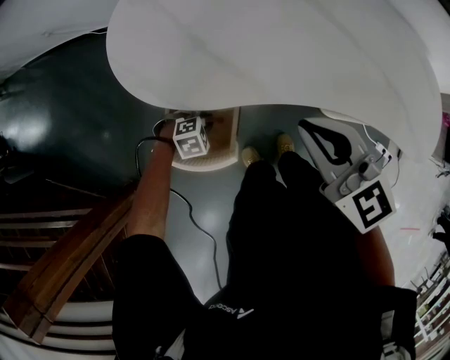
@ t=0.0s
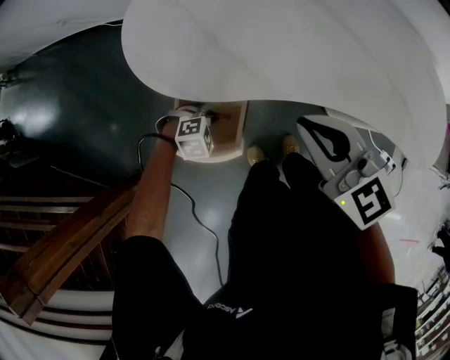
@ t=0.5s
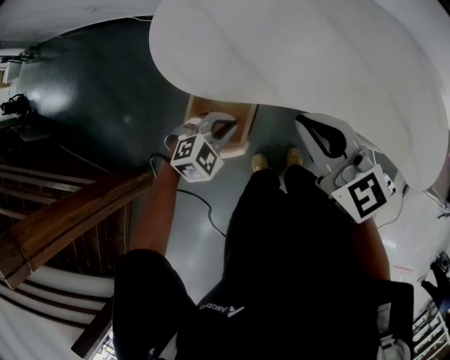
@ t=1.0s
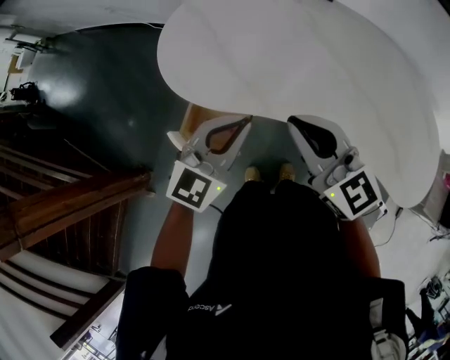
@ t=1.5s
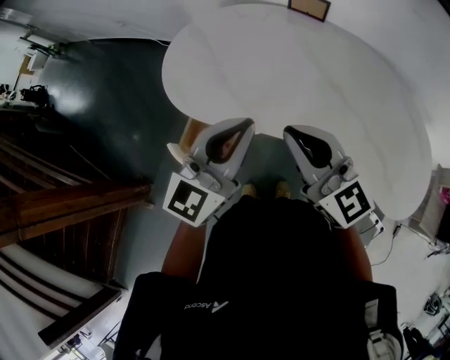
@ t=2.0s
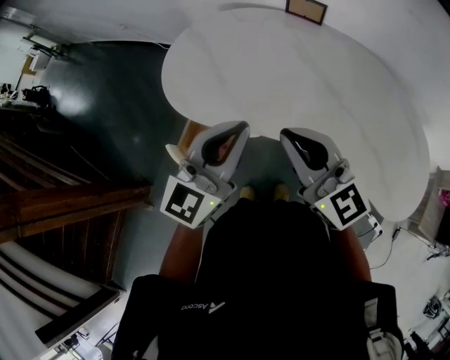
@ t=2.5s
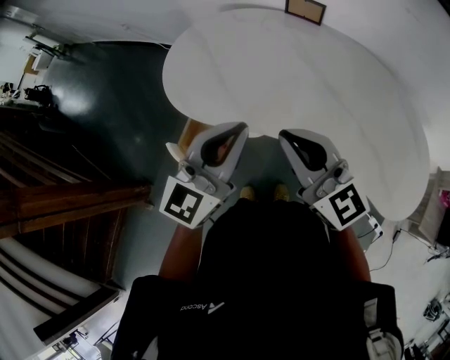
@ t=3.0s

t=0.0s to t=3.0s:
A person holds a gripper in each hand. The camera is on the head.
t=0.0s to t=1.5s: The left gripper heads upward, covering about 40 cm, and tips its fingers upward by approximately 60 degrees, while the right gripper heads upward, covering roughly 10 cm.
t=1.5s to t=3.0s: The right gripper ends up some 5 cm from where it was. The left gripper is displaced upward by about 10 cm, and rotates some 20 degrees.

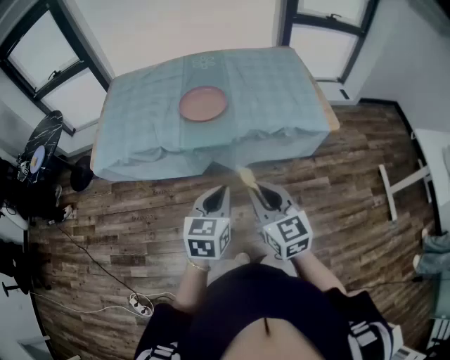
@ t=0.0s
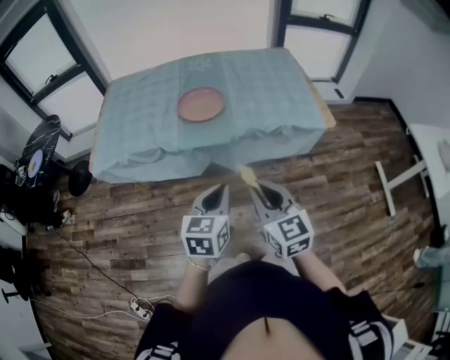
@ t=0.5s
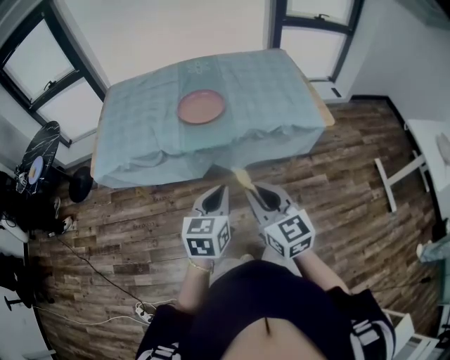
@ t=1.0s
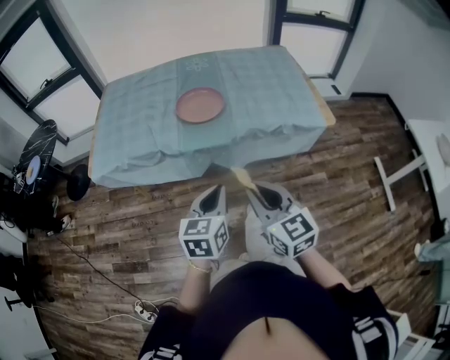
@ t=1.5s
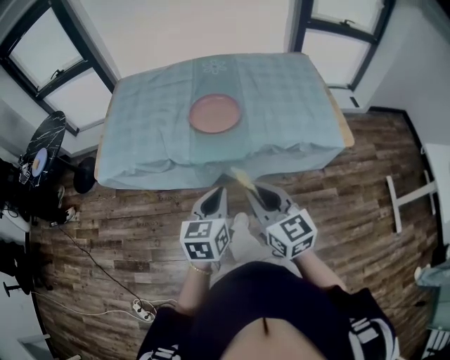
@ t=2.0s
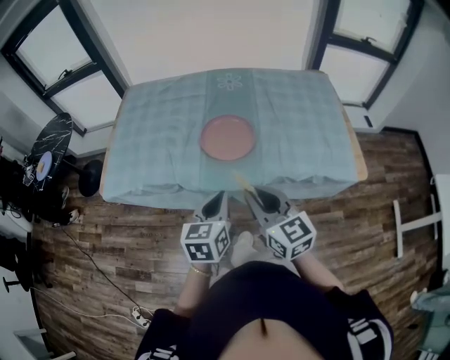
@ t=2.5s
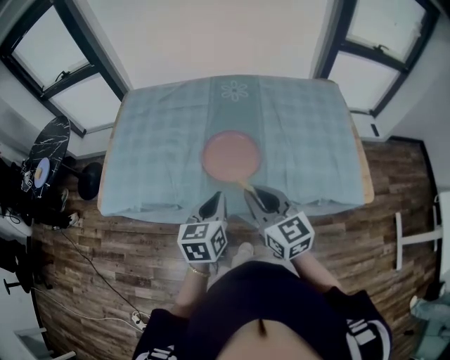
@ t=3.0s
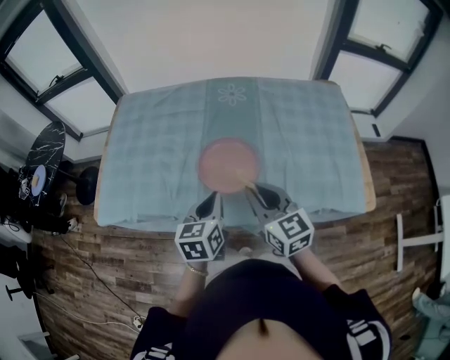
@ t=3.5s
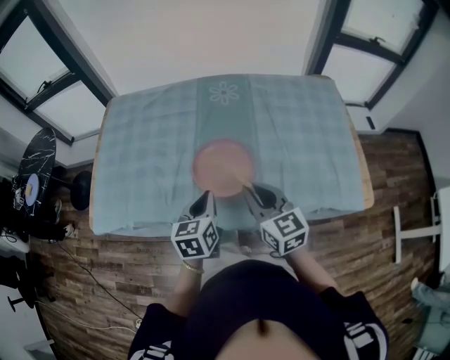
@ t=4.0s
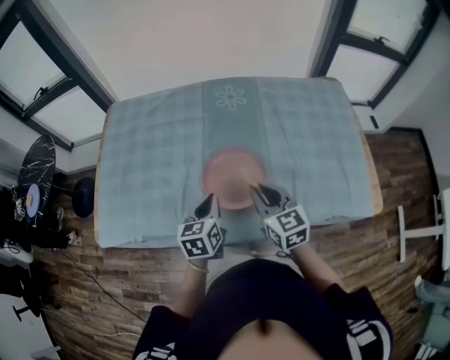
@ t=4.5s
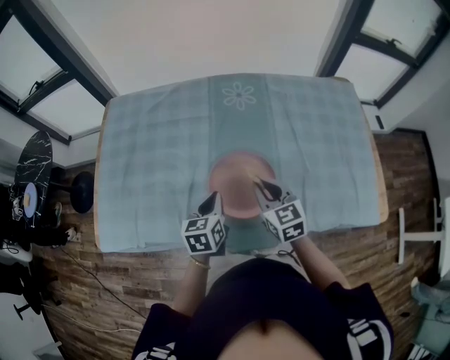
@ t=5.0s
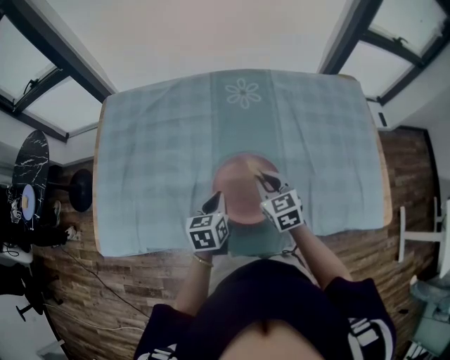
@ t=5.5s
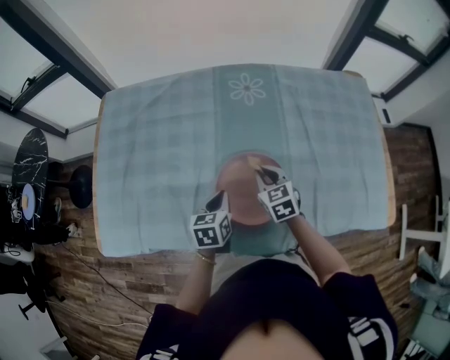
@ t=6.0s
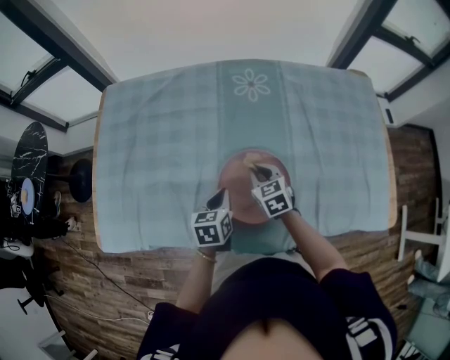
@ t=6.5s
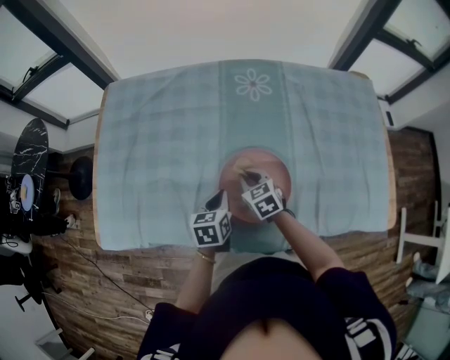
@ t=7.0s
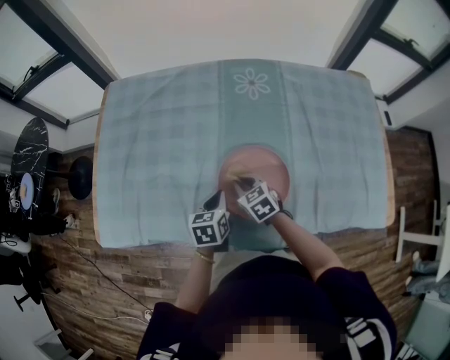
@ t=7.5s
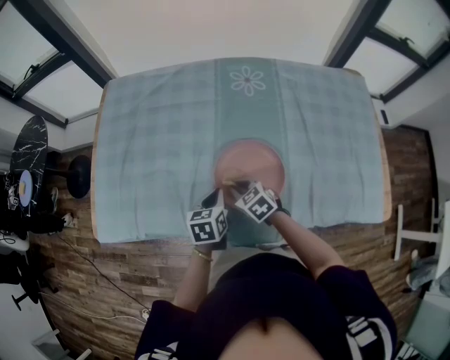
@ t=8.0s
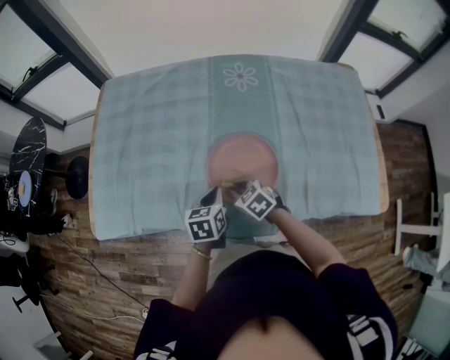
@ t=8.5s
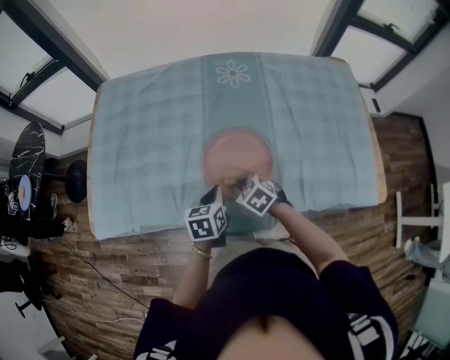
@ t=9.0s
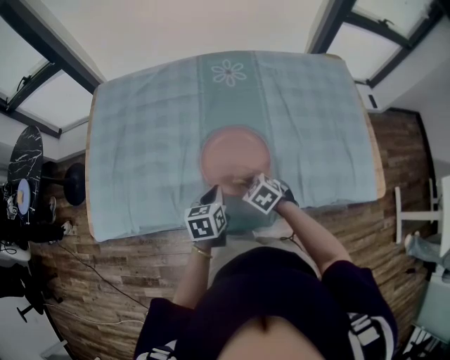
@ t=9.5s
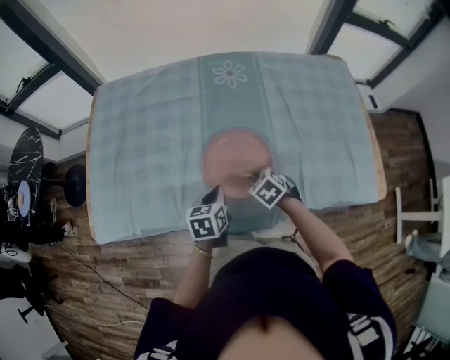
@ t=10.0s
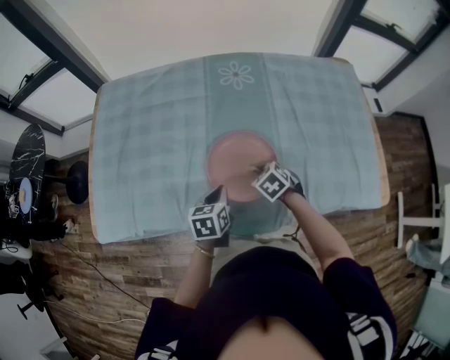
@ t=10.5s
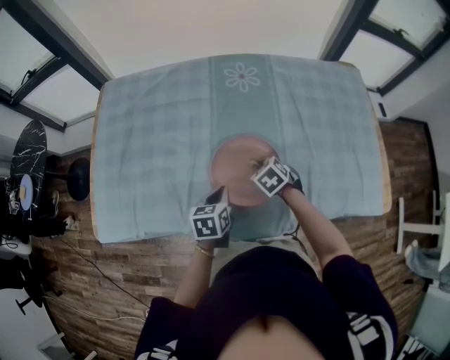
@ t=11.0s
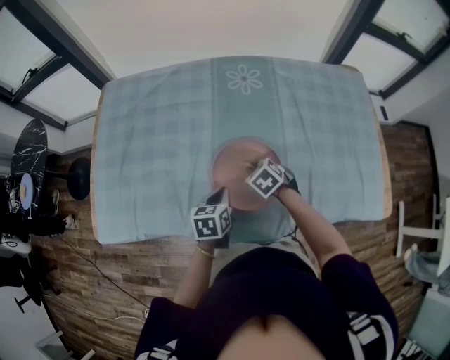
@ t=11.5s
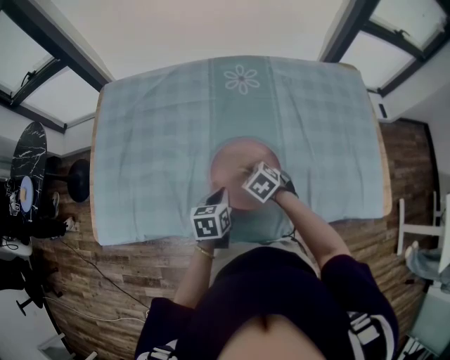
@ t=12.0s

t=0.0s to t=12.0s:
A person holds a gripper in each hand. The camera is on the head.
t=0.0s to t=2.0s: The grippers both shift forward by approximately 10 cm.
t=2.0s to t=4.0s: The grippers both shift forward by roughly 30 cm.
t=4.0s to t=6.0s: The two grippers go about 25 cm forward and downward. The right gripper swivels roughly 20 degrees.
t=6.0s to t=8.0s: The right gripper goes some 10 cm to the left and backward, and swivels approximately 20 degrees.
t=8.0s to t=10.0s: The right gripper moves to the right, roughly 10 cm.
t=10.0s to t=12.0s: The right gripper is displaced forward by roughly 5 cm.

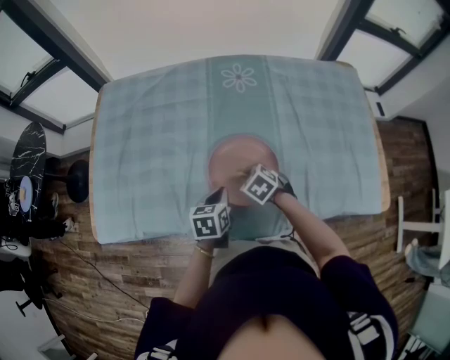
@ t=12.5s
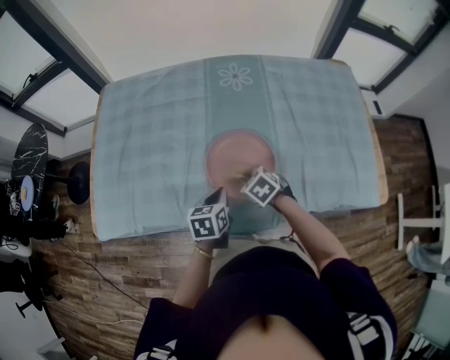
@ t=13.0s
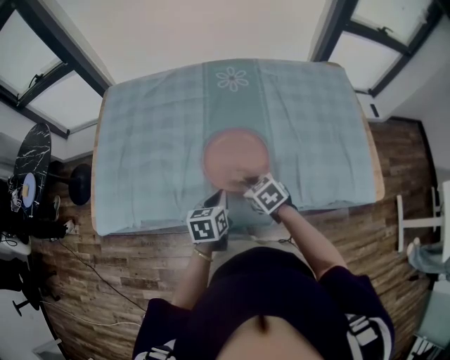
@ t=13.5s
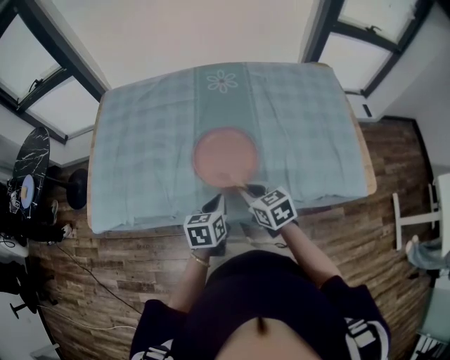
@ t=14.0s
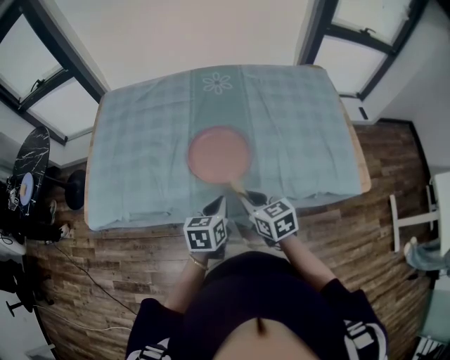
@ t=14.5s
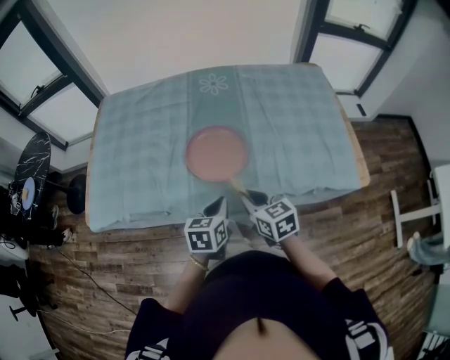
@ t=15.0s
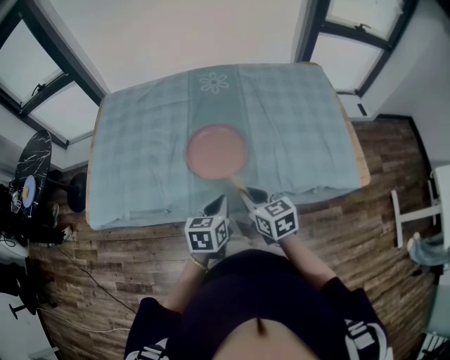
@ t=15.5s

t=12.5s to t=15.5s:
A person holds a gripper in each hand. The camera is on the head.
t=12.5s to t=14.0s: Both grippers travel together backward and upward, about 15 cm. The right gripper turns by some 40 degrees.
t=14.0s to t=15.5s: Both grippers move backward, approximately 5 cm.

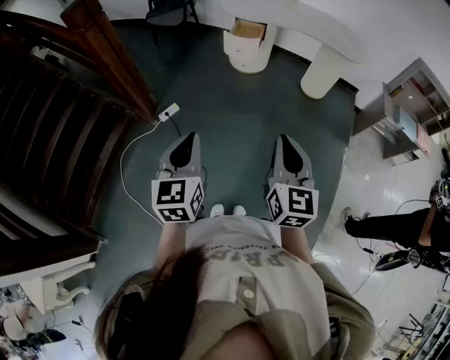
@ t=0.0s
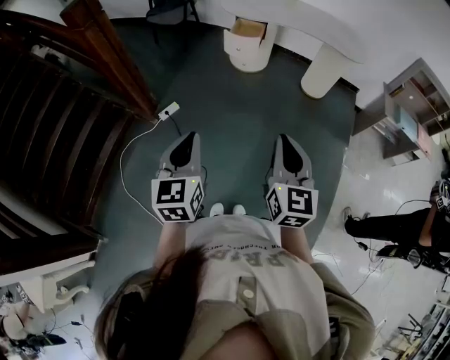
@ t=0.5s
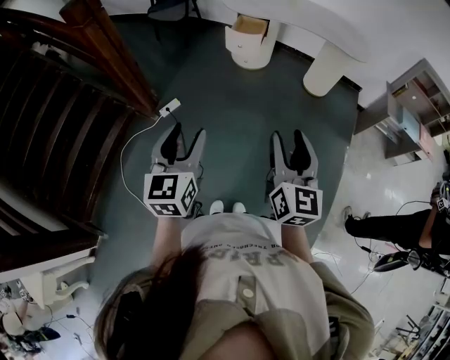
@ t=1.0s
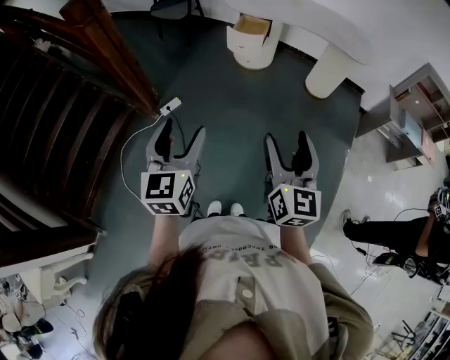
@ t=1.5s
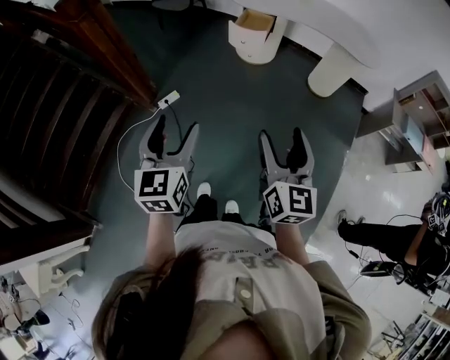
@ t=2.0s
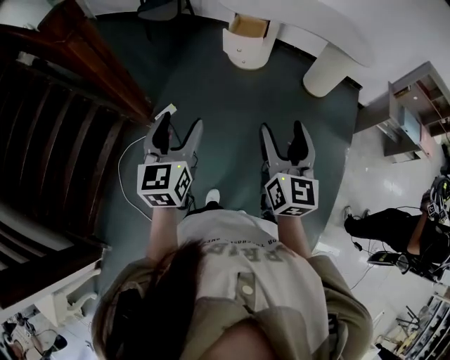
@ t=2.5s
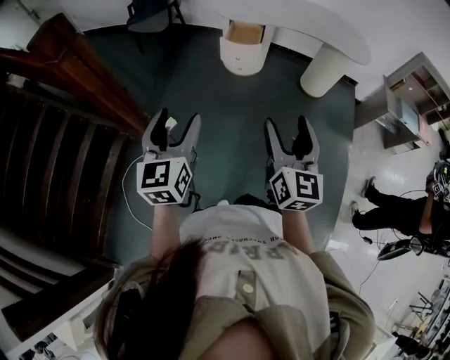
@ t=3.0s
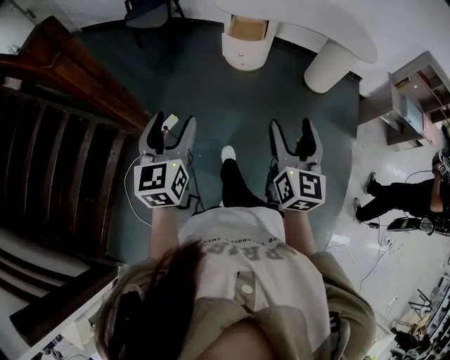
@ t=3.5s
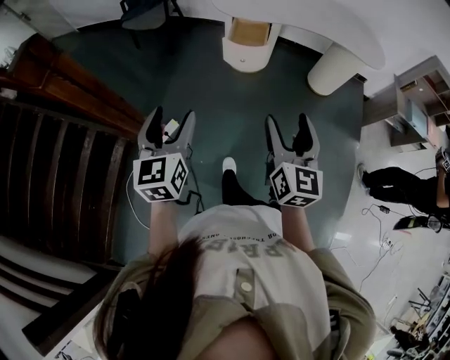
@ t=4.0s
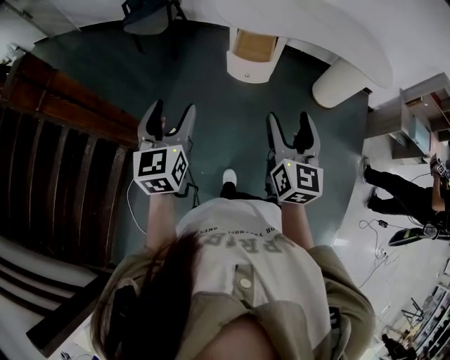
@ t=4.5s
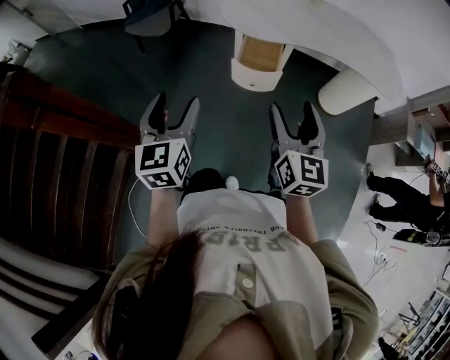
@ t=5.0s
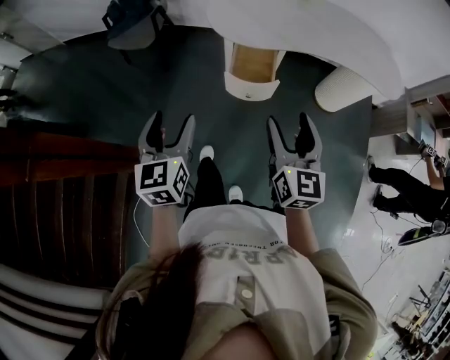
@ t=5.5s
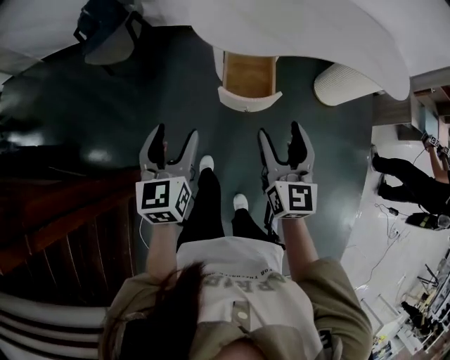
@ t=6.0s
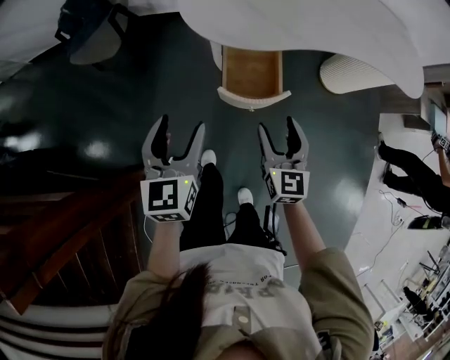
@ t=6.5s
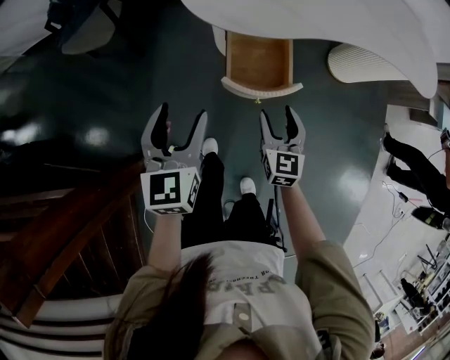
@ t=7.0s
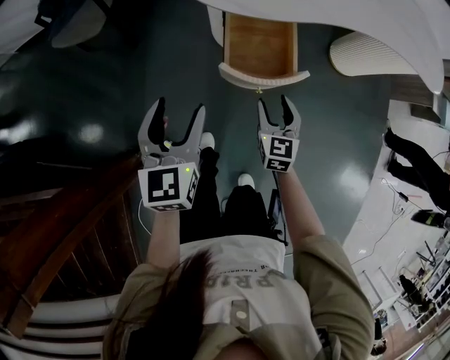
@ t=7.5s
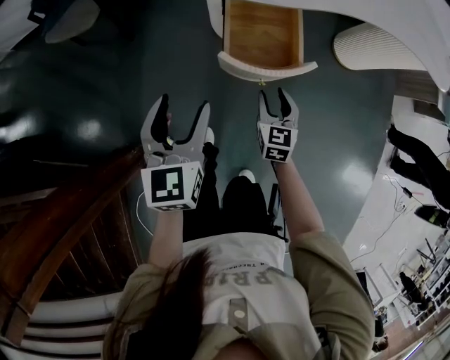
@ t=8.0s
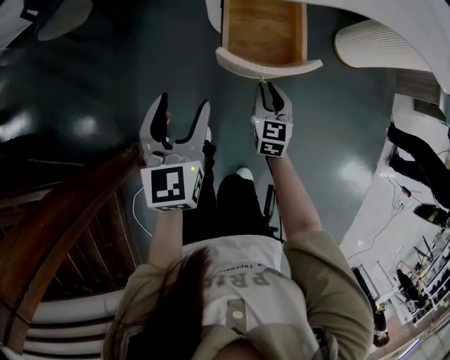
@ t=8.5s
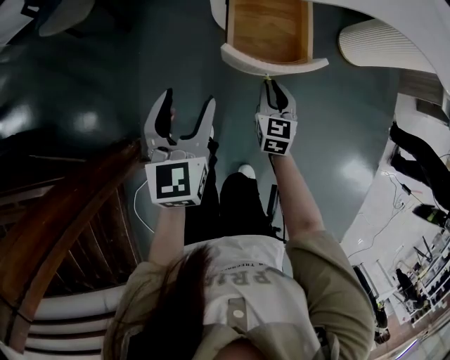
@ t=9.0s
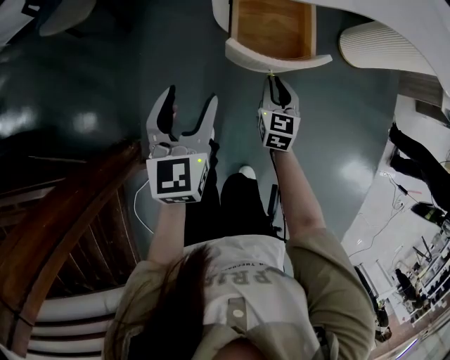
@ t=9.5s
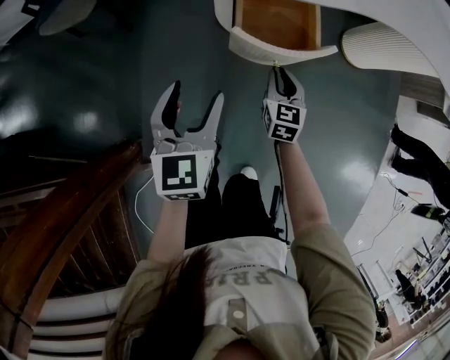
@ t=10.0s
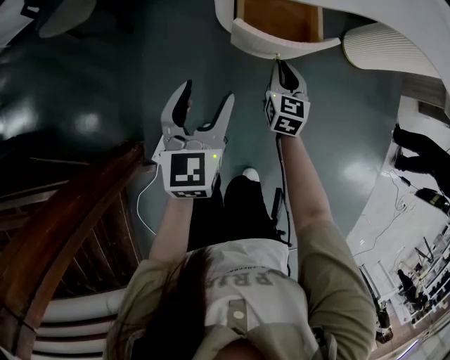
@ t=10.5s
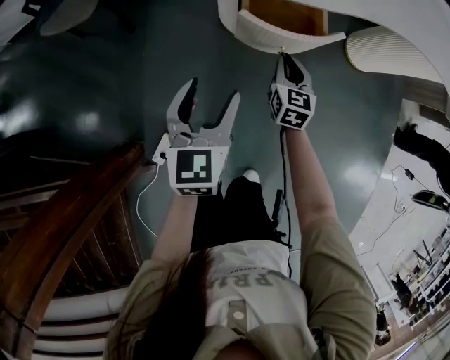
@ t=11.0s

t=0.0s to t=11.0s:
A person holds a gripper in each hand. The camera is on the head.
t=0.0s to t=2.0s: The two grippers go about 5 cm forward. The right gripper opens; the left gripper opens.
t=2.0s to t=3.5s: Both grippers travel together forward and to the left, roughly 20 cm.
t=3.5s to t=5.5s: Both grippers travel together forward, about 35 cm.
t=5.5s to t=7.5s: Both grippers move downward and forward, some 40 cm. The right gripper changes its angle by roughly 20 degrees.
t=7.5s to t=9.0s: The grippers both shift downward by about 10 cm. The right gripper closes its fingers.
t=9.0s to t=11.0s: The right gripper travels forward by approximately 10 cm, while the left gripper moves approximately 5 cm.
